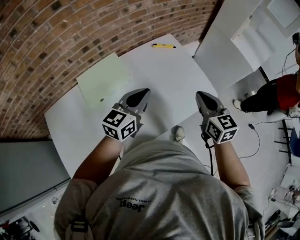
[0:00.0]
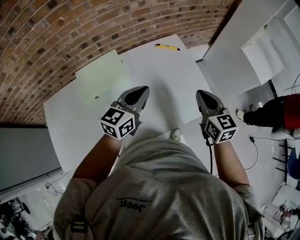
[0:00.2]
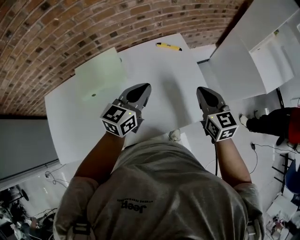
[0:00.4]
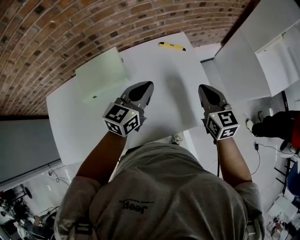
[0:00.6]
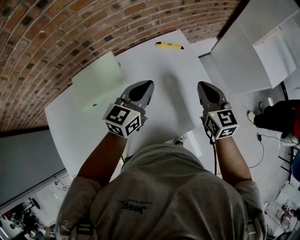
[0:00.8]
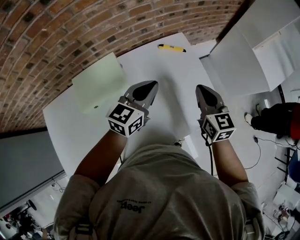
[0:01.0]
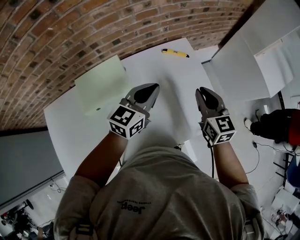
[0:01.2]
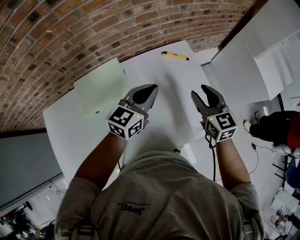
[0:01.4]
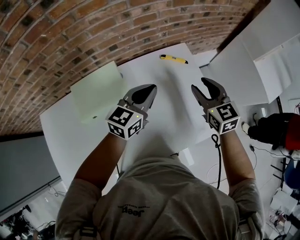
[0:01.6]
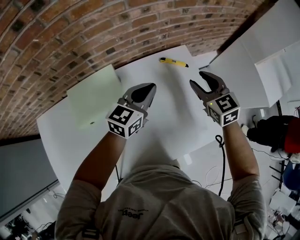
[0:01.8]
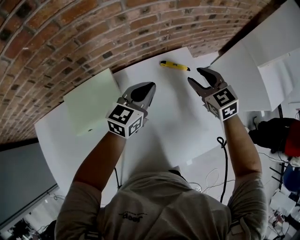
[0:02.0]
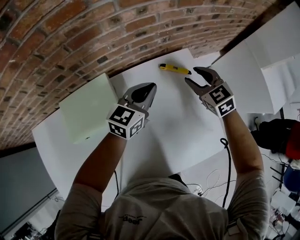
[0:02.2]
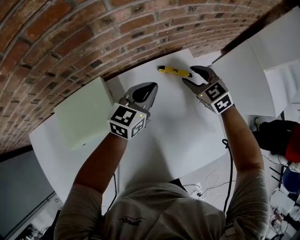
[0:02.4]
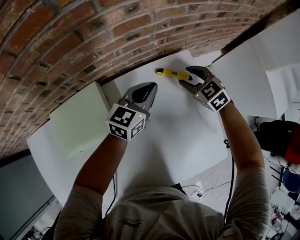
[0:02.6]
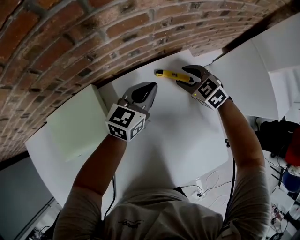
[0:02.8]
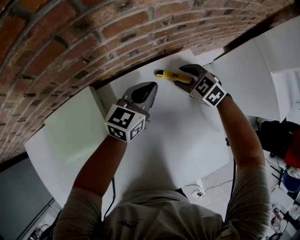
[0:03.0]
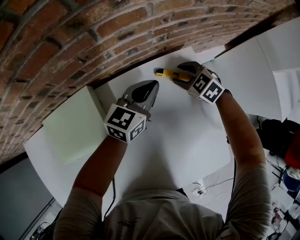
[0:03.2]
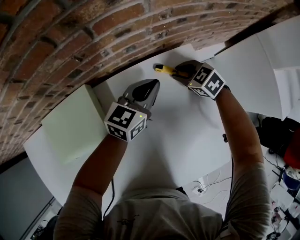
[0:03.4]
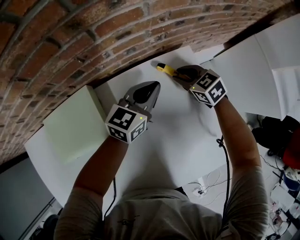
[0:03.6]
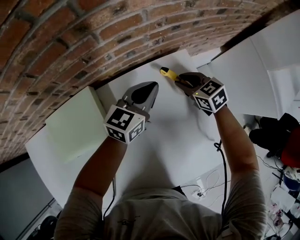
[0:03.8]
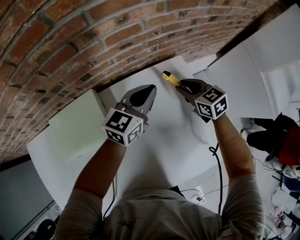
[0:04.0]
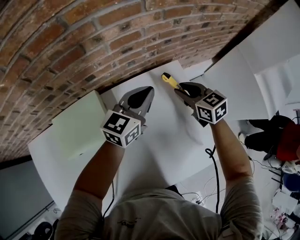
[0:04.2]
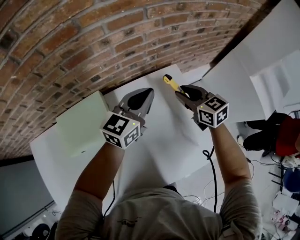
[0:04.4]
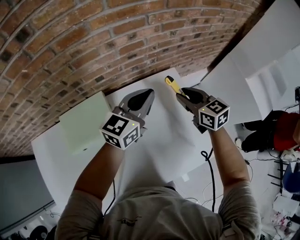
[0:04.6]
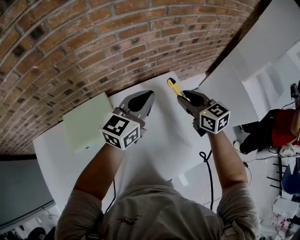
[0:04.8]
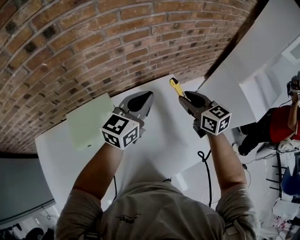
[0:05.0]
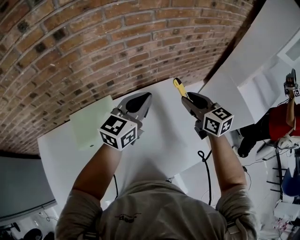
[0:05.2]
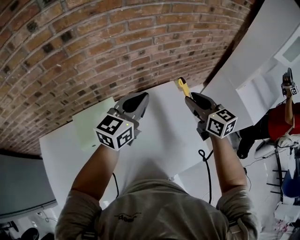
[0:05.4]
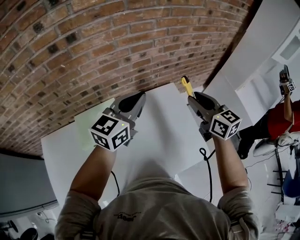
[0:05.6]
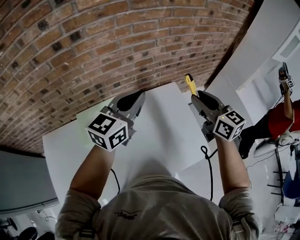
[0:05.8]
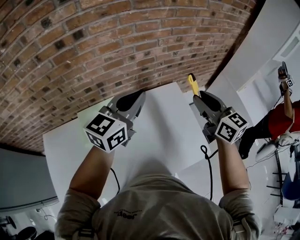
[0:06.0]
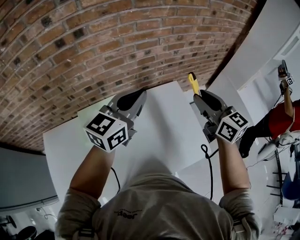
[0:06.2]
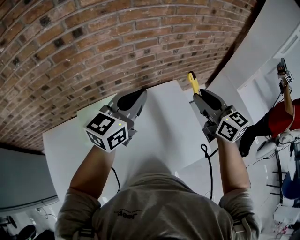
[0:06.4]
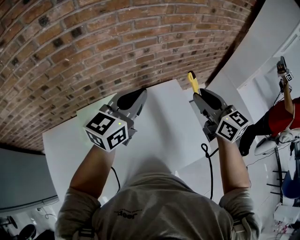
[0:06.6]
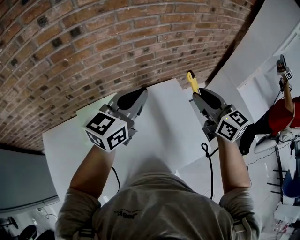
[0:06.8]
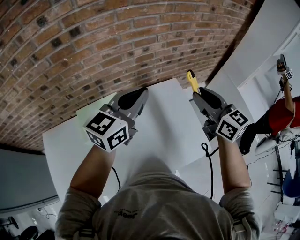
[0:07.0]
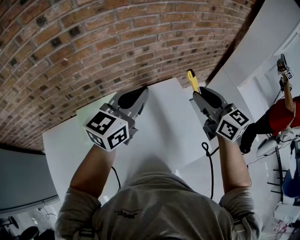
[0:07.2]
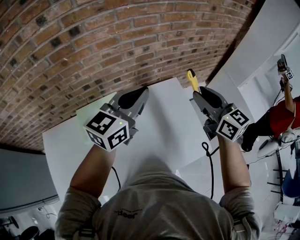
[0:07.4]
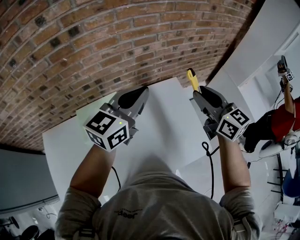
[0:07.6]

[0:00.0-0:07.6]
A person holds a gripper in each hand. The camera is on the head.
0:00.0 to 0:01.6: Both grippers move forward, approximately 20 cm. The right gripper opens.
0:01.6 to 0:03.0: The left gripper moves forward and downward, roughly 25 cm. The right gripper travels downward and forward by about 30 cm, and turns by some 40 degrees.
0:03.0 to 0:04.6: Both grippers travel together upward and backward, approximately 20 cm. The right gripper turns by about 40 degrees, and closes.
0:04.6 to 0:06.0: The right gripper goes about 25 cm upward and backward. The left gripper goes about 20 cm upward, backward and to the left.
0:06.0 to 0:07.6: Both grippers stay about where they are.

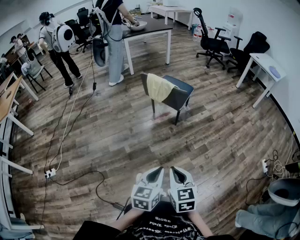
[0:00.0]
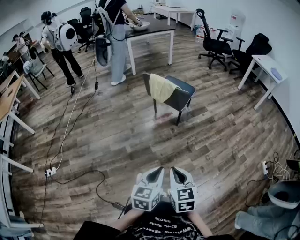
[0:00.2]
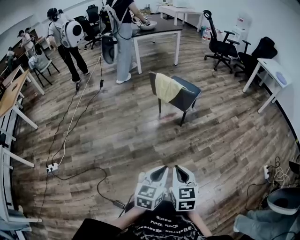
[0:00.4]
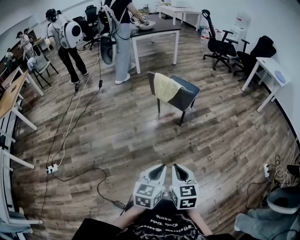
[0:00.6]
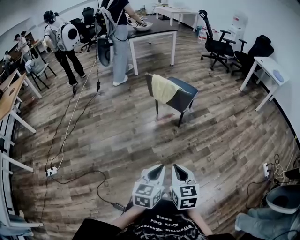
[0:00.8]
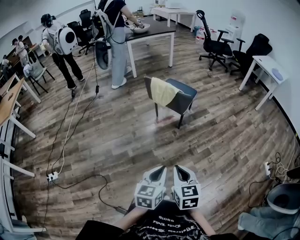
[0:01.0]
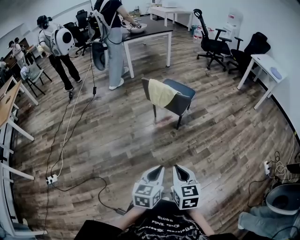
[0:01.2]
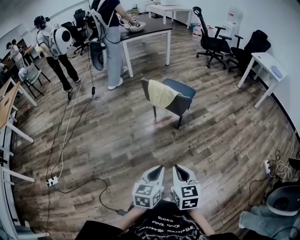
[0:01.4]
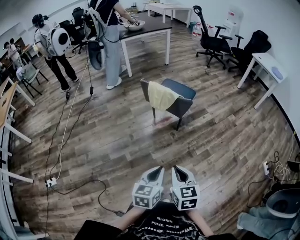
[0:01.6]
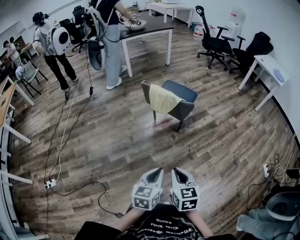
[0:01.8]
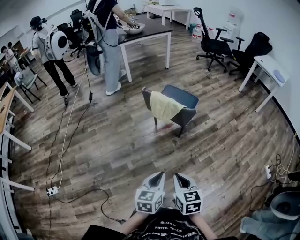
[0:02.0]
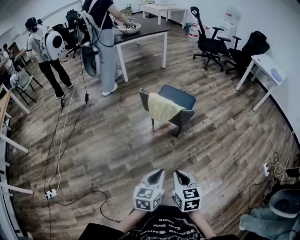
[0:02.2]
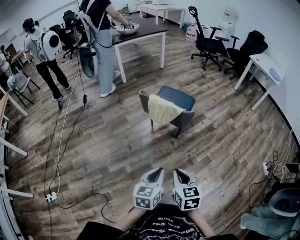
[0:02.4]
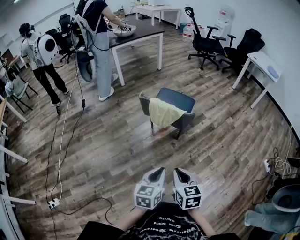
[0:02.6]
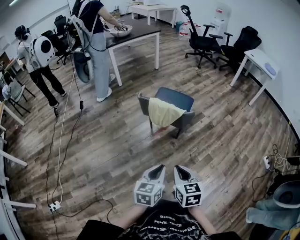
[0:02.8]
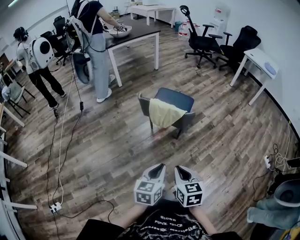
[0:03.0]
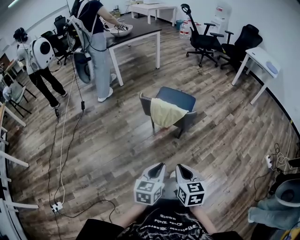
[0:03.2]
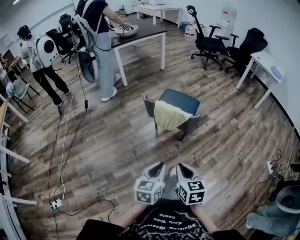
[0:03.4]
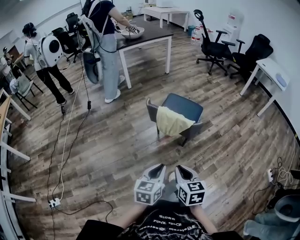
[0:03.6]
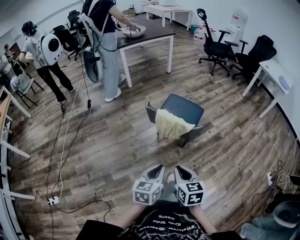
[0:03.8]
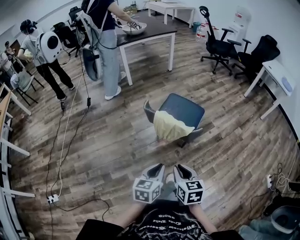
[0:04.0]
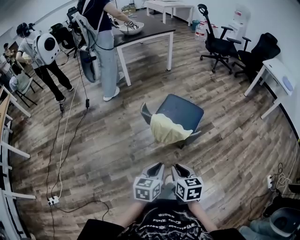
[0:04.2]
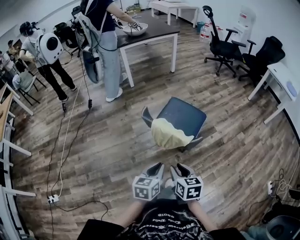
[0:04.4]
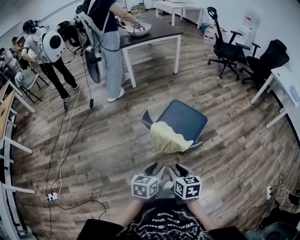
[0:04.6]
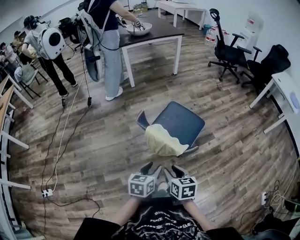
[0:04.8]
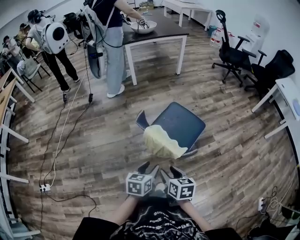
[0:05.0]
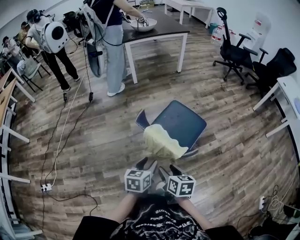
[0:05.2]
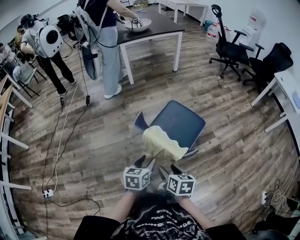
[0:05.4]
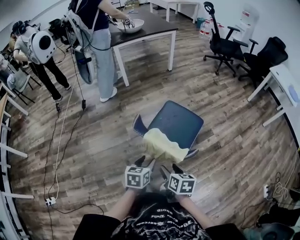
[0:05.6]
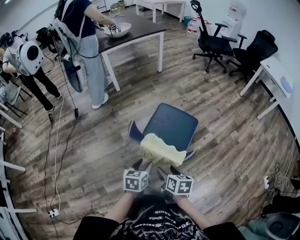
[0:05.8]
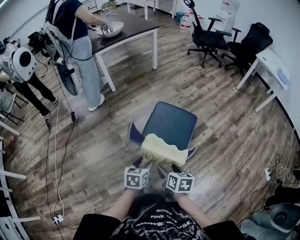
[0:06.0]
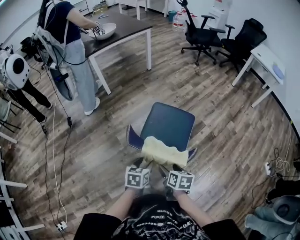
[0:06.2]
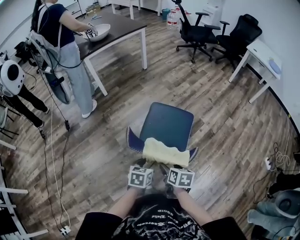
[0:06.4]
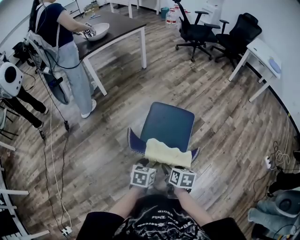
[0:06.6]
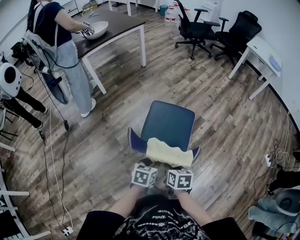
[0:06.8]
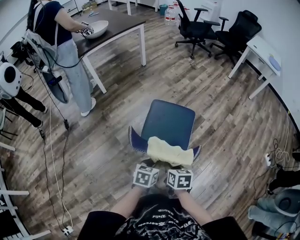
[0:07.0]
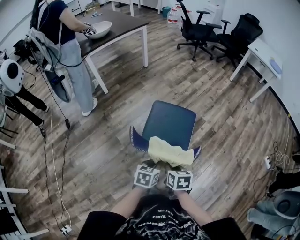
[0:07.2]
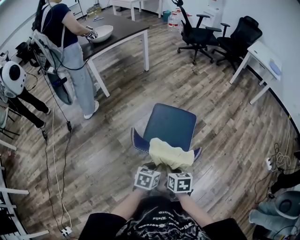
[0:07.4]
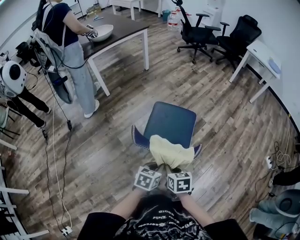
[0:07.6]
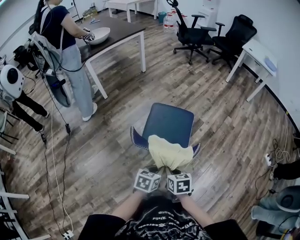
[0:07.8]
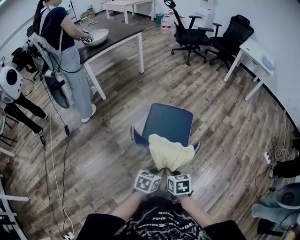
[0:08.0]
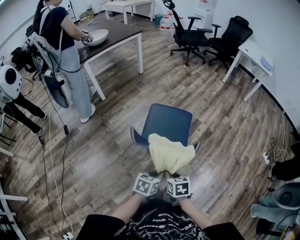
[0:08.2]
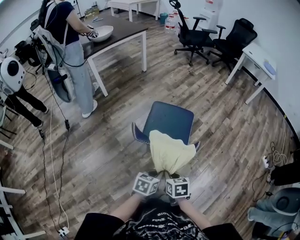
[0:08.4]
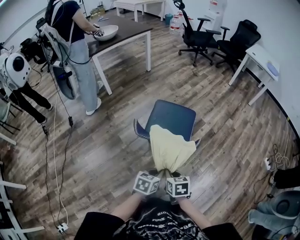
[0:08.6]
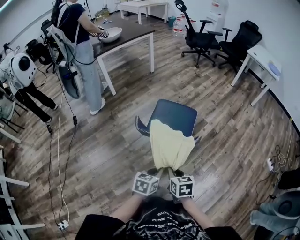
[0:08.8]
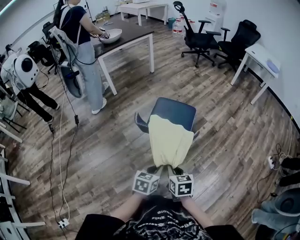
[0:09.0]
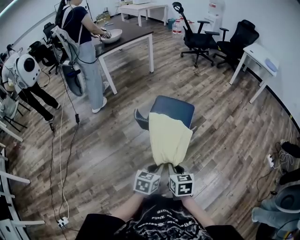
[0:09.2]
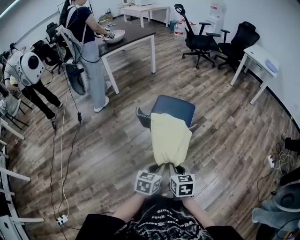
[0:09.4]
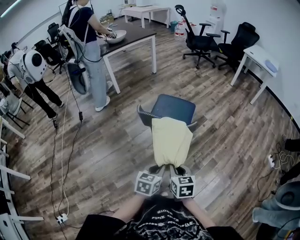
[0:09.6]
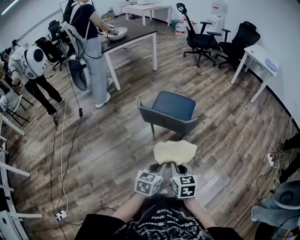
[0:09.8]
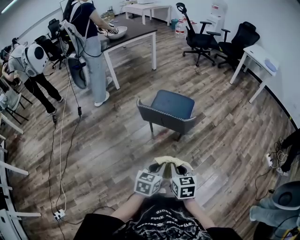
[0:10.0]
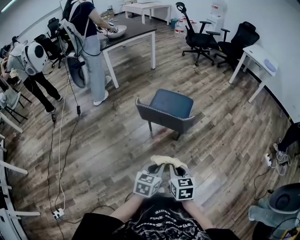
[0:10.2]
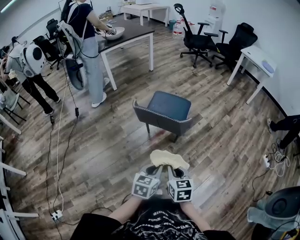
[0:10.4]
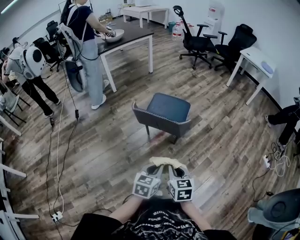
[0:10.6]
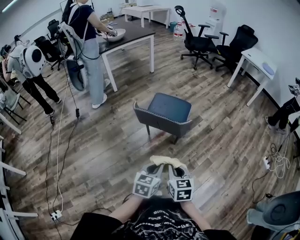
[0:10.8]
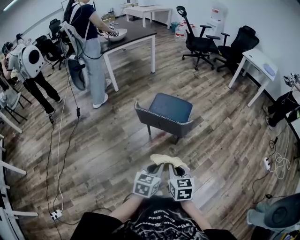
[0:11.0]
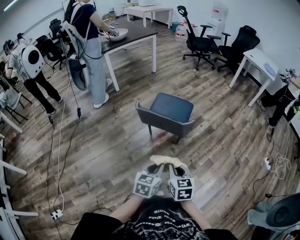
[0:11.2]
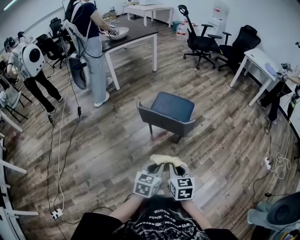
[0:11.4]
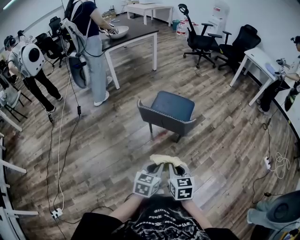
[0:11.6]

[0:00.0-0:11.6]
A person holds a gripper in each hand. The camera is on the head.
0:00.0 to 0:01.4: Both grippers move forward, some 5 cm.
0:01.4 to 0:02.8: The grippers both shift forward and to the left by roughly 15 cm.
0:02.8 to 0:04.4: The two grippers go some 15 cm forward.
0:04.4 to 0:05.8: The two grippers go roughly 15 cm forward and downward. The right gripper opens its fingers, while the left gripper opens.
0:05.8 to 0:07.2: The left gripper shifts by some 5 cm, rotates approximately 20 degrees, and closes its fingers. Meanwhile the right gripper changes place by approximately 5 cm, and closes.
0:07.2 to 0:08.8: Both grippers move backward, approximately 10 cm.
0:08.8 to 0:10.2: The two grippers go approximately 10 cm backward.
0:10.2 to 0:11.6: The grippers stay close to where they were, moving slightly.

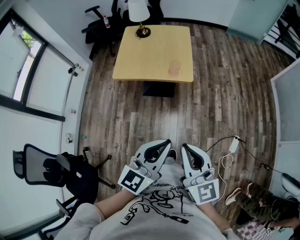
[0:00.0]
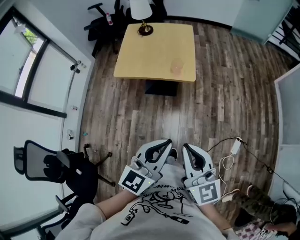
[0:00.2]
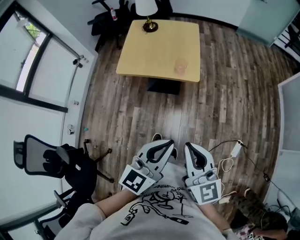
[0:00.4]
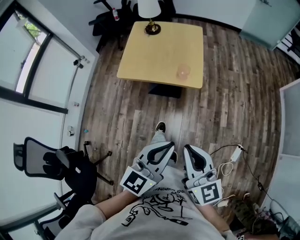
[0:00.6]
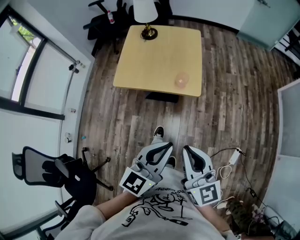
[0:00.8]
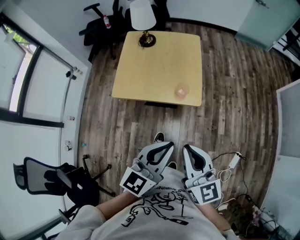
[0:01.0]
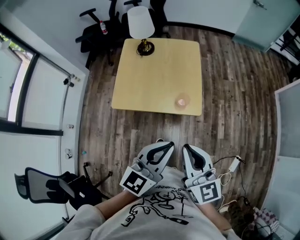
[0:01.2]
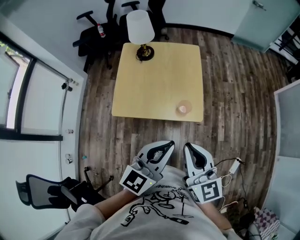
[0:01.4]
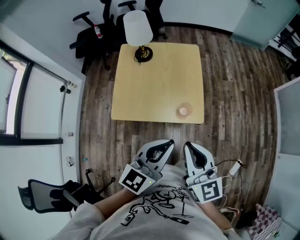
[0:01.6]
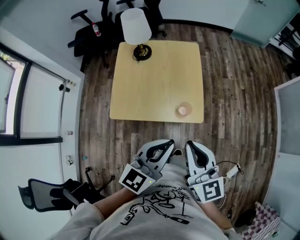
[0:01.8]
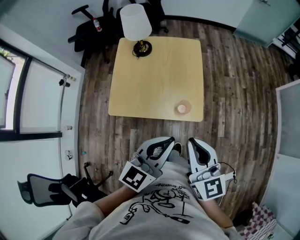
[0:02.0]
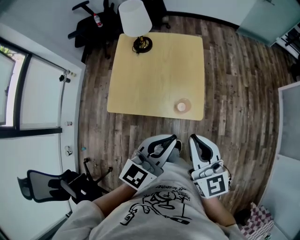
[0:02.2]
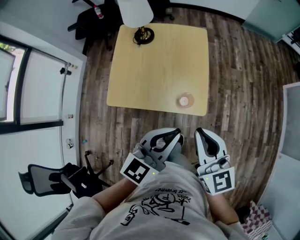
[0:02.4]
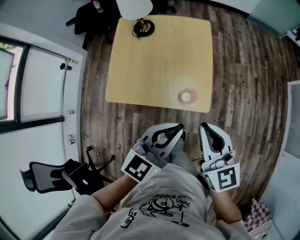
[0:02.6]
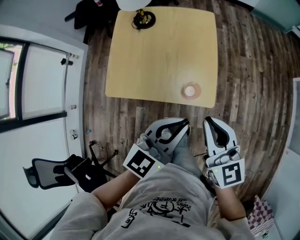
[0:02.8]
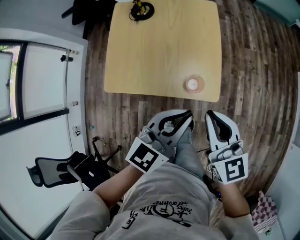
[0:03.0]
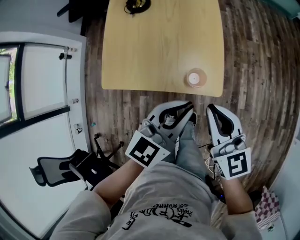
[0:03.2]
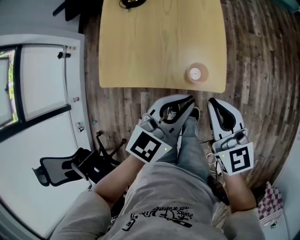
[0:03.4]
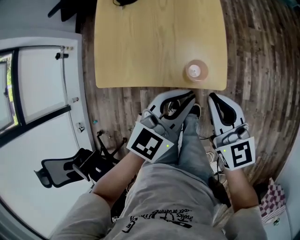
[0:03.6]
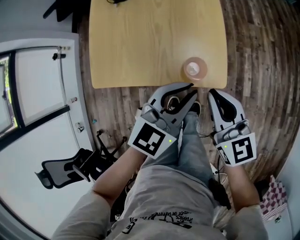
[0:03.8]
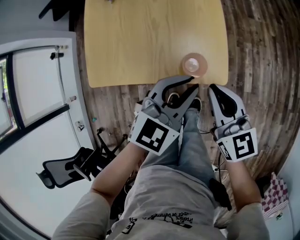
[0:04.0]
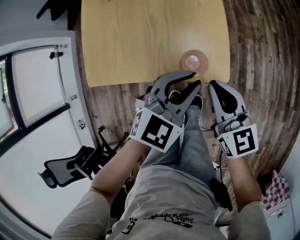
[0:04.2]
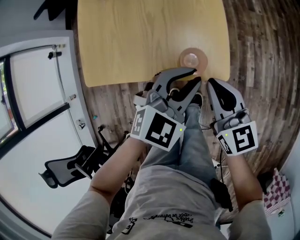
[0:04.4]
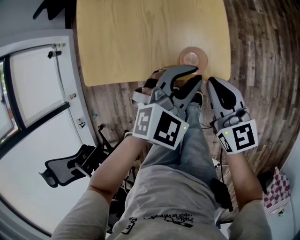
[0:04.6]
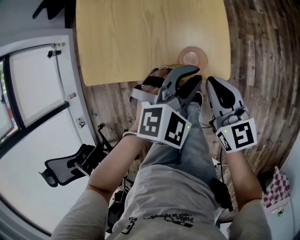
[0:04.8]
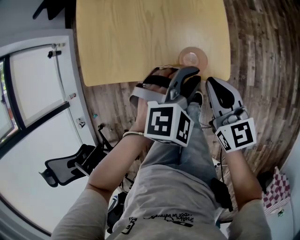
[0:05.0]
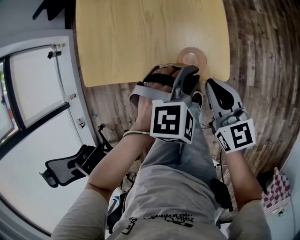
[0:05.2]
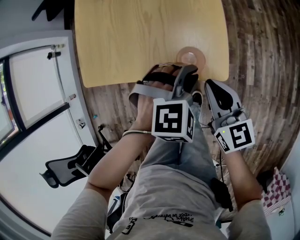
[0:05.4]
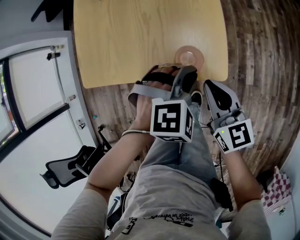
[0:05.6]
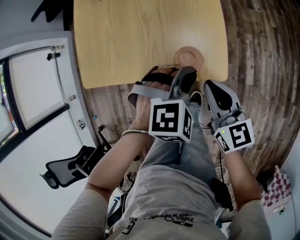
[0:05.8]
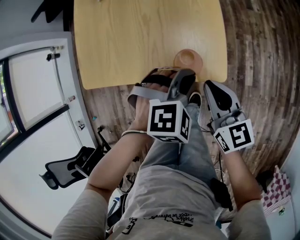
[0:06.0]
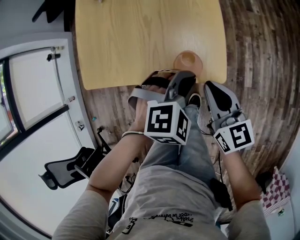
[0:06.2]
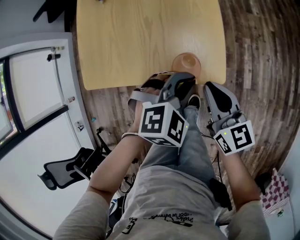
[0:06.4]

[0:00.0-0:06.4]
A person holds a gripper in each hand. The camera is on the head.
0:00.0 to 0:01.6: Both grippers travel together forward, about 30 cm.
0:01.6 to 0:03.2: Both grippers move downward, forward and to the right, some 15 cm.
0:03.2 to 0:04.8: Both grippers travel together downward, roughly 15 cm. The left gripper angles its fingers downward, by some 30 degrees.
0:04.8 to 0:06.4: The grippers stay close to where they were, moving slightly.
